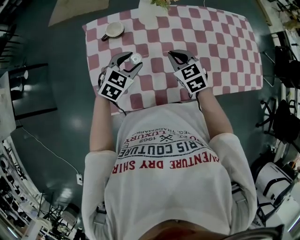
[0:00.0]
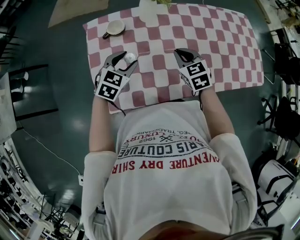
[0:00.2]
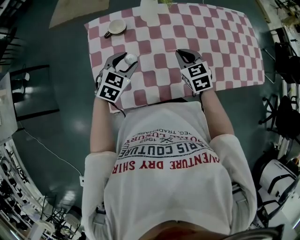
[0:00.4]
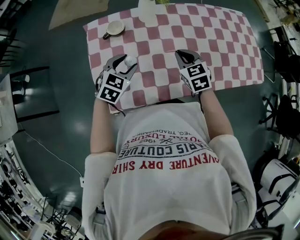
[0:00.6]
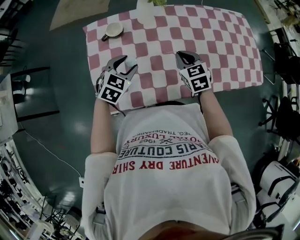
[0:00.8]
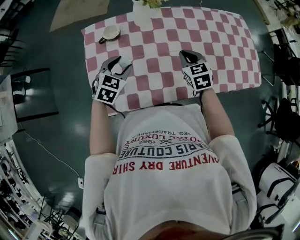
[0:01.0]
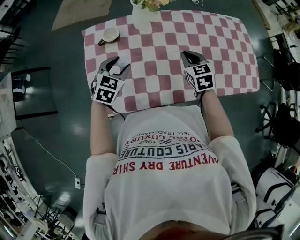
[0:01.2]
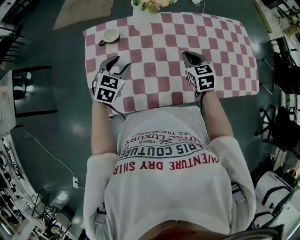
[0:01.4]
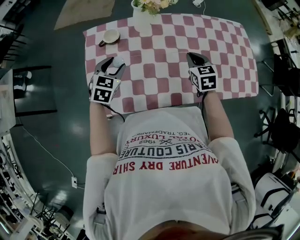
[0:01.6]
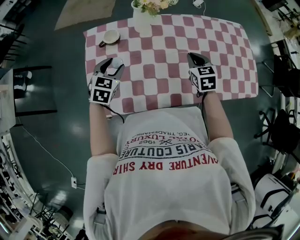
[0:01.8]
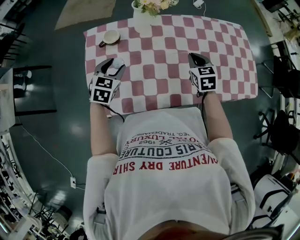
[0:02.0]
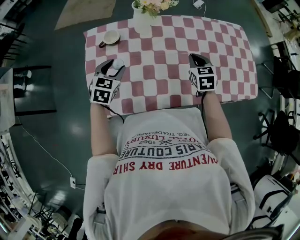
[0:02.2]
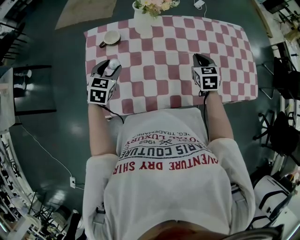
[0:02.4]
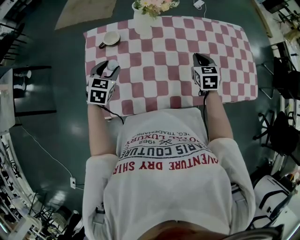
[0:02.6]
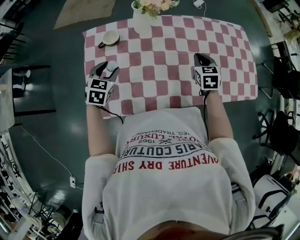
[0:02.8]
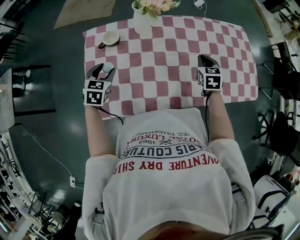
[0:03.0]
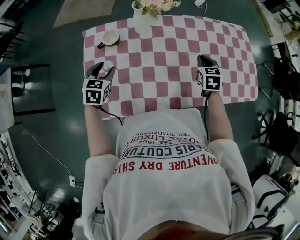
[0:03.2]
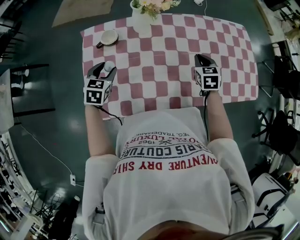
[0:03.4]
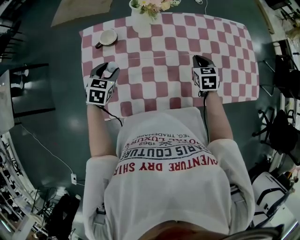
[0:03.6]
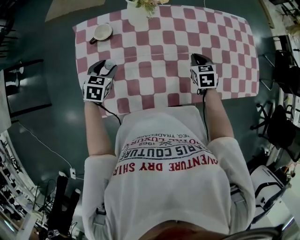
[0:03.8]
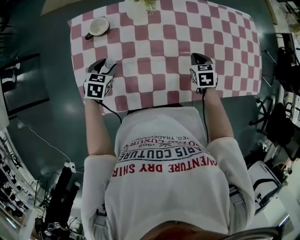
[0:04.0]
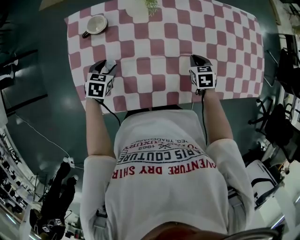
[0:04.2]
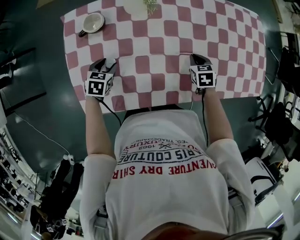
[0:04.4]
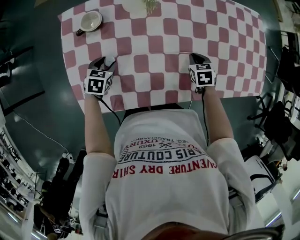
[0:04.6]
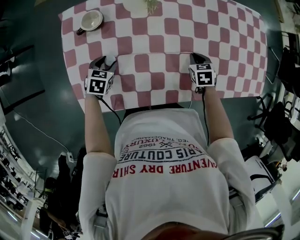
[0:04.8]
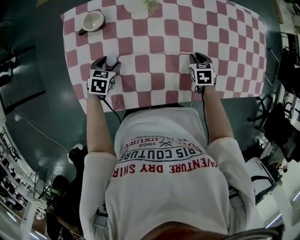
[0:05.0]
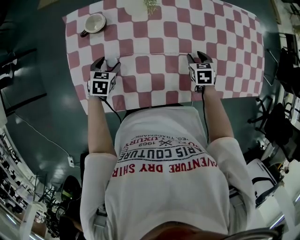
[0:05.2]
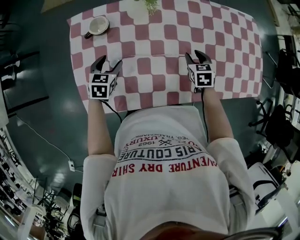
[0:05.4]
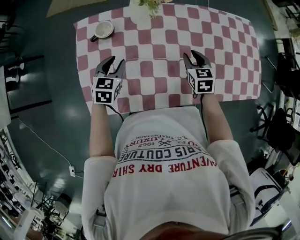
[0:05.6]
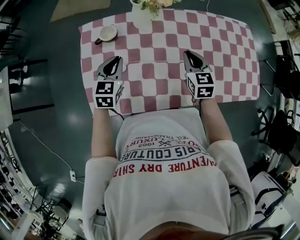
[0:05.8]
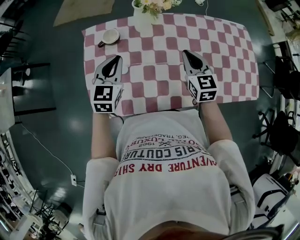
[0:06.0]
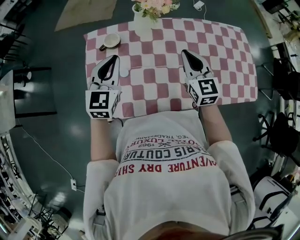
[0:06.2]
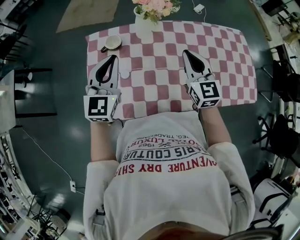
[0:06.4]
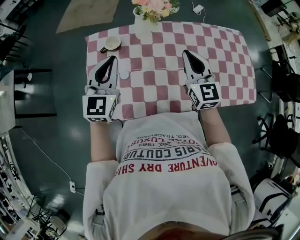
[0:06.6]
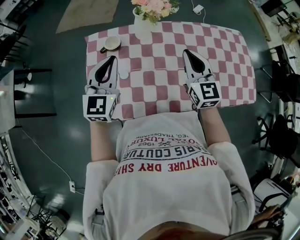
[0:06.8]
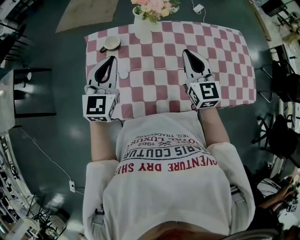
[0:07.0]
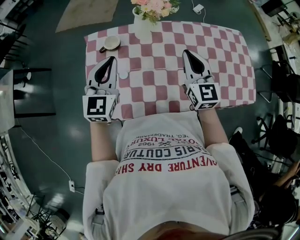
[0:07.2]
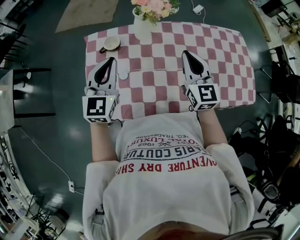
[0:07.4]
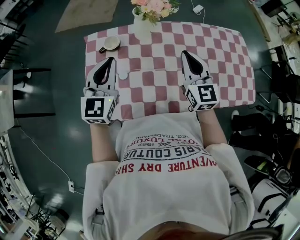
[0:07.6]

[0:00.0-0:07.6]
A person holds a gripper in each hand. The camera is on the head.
0:00.0 to 0:01.6: The right gripper travels to the right by approximately 15 cm.
0:01.6 to 0:03.0: The right gripper shifts about 5 cm to the right, while the left gripper ends up approximately 5 cm from where it was.
0:03.0 to 0:04.6: The two grippers go approximately 15 cm downward. The right gripper changes its angle by approximately 20 degrees; the left gripper changes its angle by roughly 20 degrees.
0:04.6 to 0:06.0: The right gripper heads upward and to the left, covering approximately 25 cm, tilts its fingers about 40 degrees upward, and opens, then closes once more, while the left gripper moves upward, some 25 cm, tilts its fingers approximately 40 degrees upward, and closes.
0:06.0 to 0:07.6: Both grippers move upward, about 10 cm.

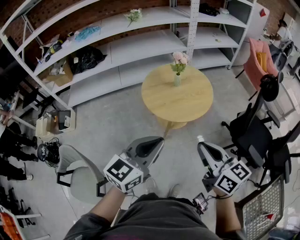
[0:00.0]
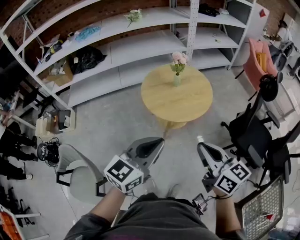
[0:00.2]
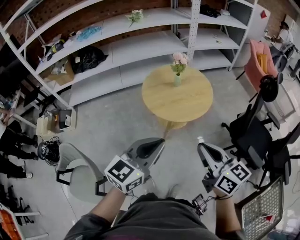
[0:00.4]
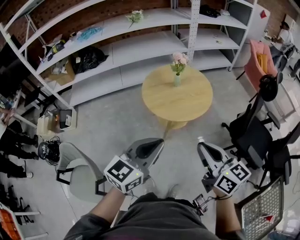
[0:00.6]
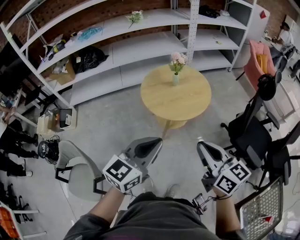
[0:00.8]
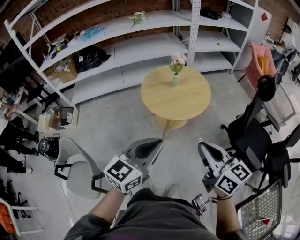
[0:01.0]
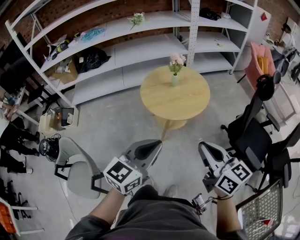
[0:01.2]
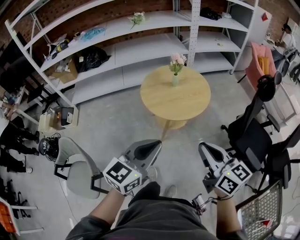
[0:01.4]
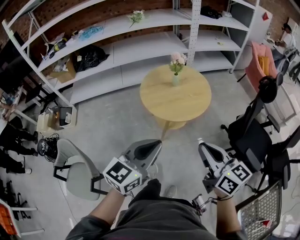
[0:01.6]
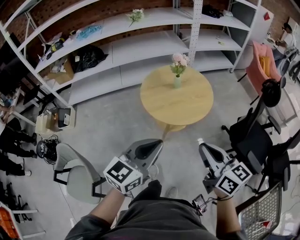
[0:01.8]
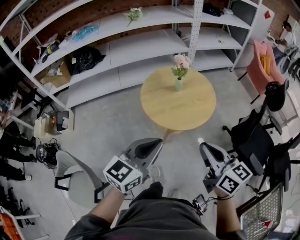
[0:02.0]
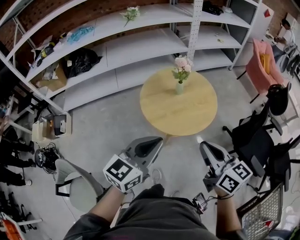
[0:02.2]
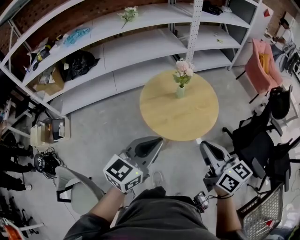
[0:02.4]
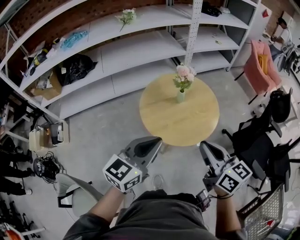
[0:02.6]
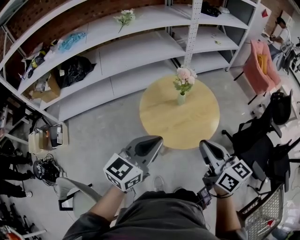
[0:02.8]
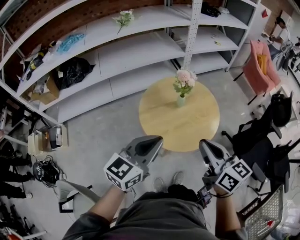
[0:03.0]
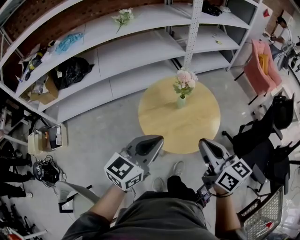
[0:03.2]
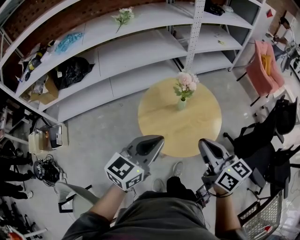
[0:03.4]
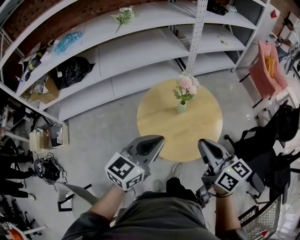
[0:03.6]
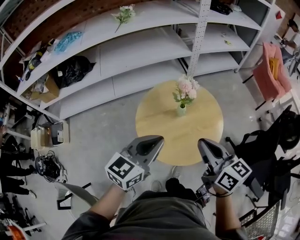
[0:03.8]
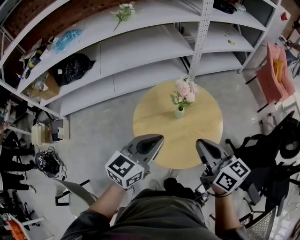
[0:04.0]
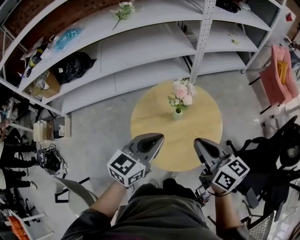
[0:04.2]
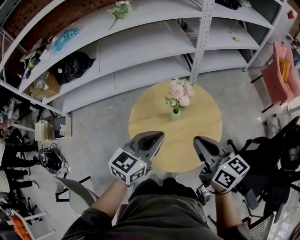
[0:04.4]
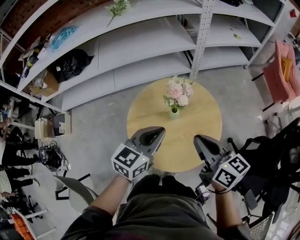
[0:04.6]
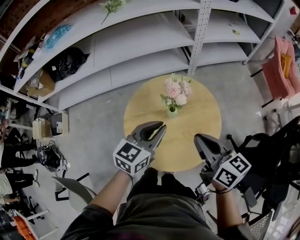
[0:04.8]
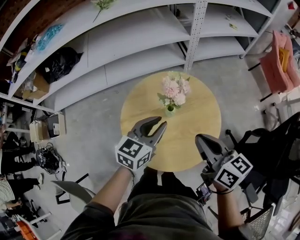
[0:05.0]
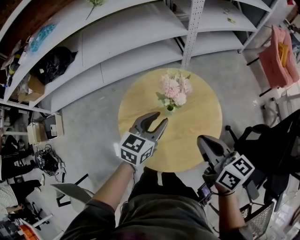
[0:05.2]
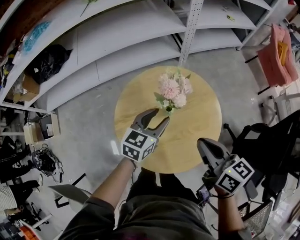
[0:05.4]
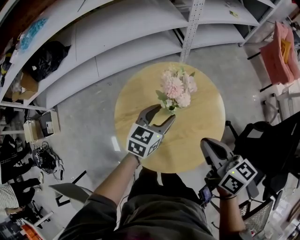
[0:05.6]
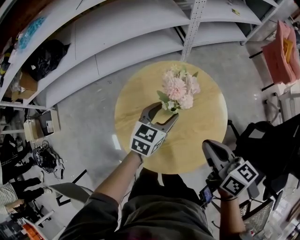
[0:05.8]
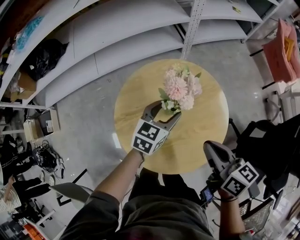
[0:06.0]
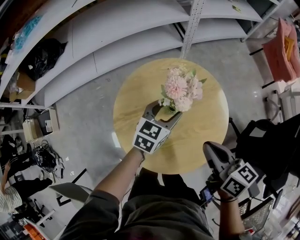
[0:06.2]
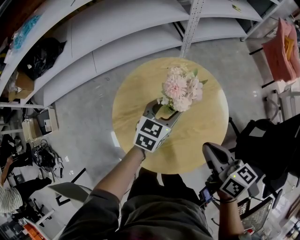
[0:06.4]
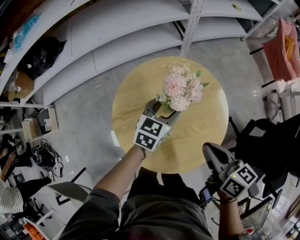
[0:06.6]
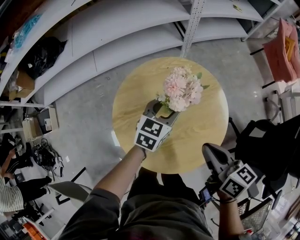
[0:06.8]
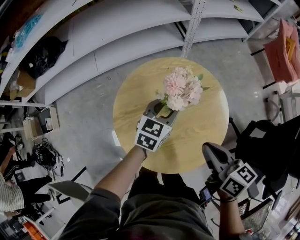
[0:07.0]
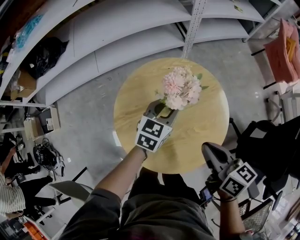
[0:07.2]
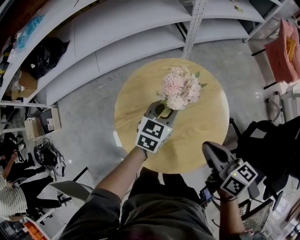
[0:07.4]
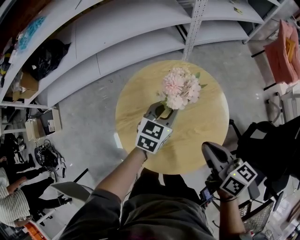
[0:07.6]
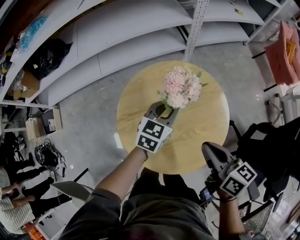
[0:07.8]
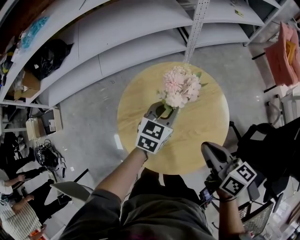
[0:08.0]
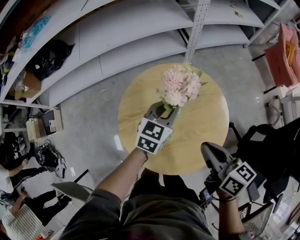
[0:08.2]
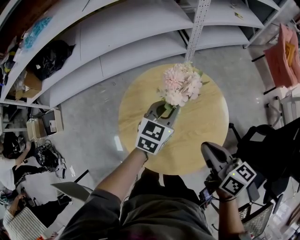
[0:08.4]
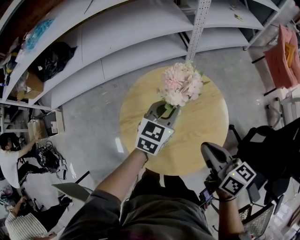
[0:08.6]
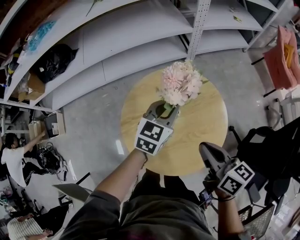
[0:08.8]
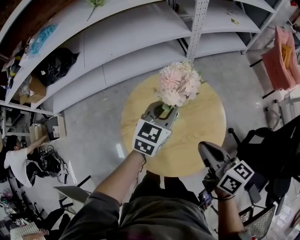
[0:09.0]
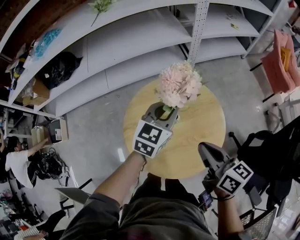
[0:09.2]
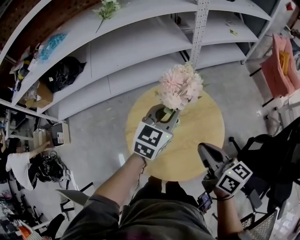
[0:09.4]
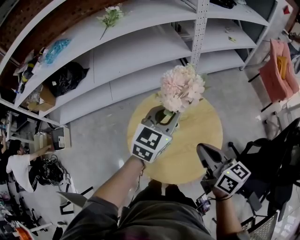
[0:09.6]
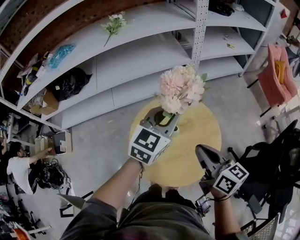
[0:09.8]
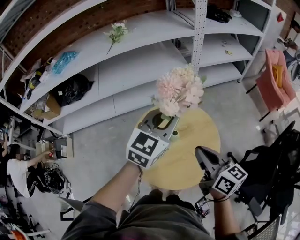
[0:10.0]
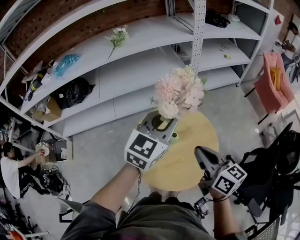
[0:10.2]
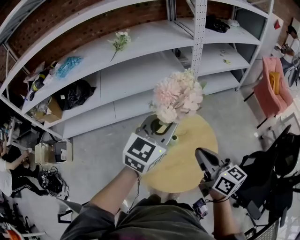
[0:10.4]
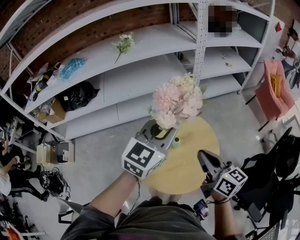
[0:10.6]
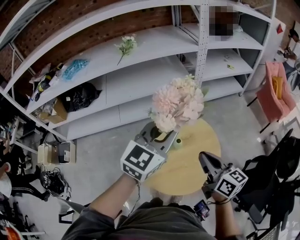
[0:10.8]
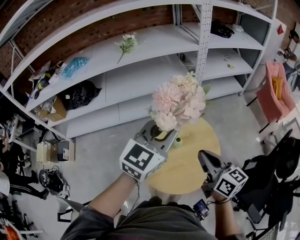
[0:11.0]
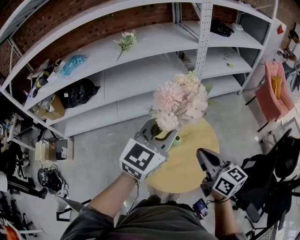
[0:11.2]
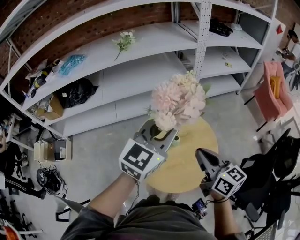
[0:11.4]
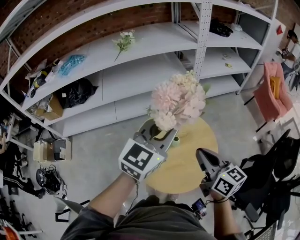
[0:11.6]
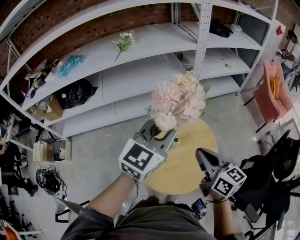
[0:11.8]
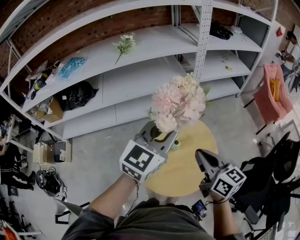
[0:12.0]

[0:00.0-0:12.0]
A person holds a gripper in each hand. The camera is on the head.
0:01.6 to 0:03.0: The grippers both shift forward and to the left by approximately 30 cm.
0:03.0 to 0:04.4: The left gripper shifts some 20 cm forward and to the right, while the right gripper is displaced forward by approximately 20 cm.
0:04.4 to 0:06.0: The left gripper travels downward and forward by about 25 cm, and opens up, while the right gripper moves downward, roughly 10 cm.
0:06.0 to 0:07.6: The left gripper closes up.
0:07.6 to 0:09.0: The left gripper shifts about 10 cm upward.
0:09.0 to 0:10.4: The right gripper travels upward by about 10 cm. The left gripper is displaced upward by roughly 20 cm.
0:10.4 to 0:12.0: The grippers stay close to where they were, moving slightly.

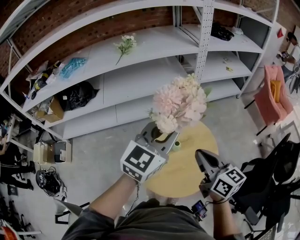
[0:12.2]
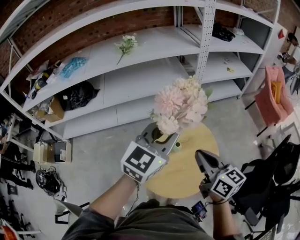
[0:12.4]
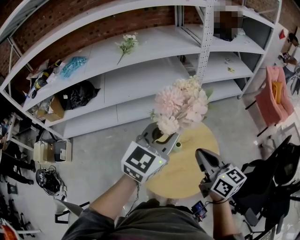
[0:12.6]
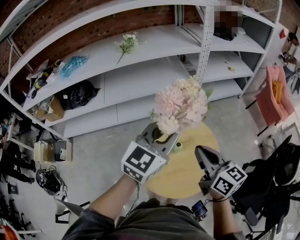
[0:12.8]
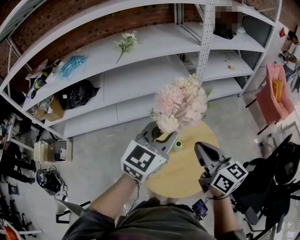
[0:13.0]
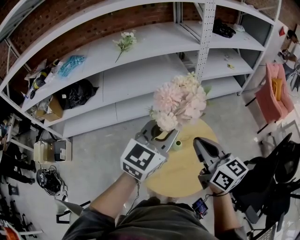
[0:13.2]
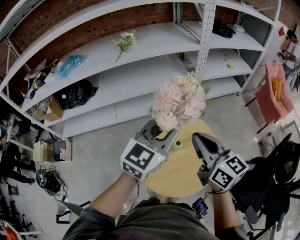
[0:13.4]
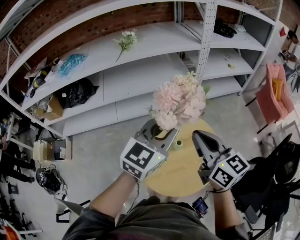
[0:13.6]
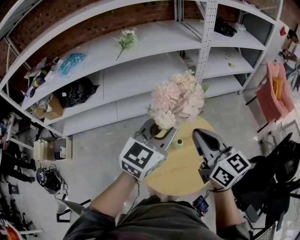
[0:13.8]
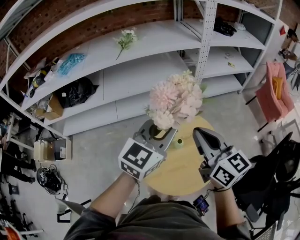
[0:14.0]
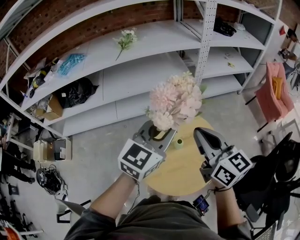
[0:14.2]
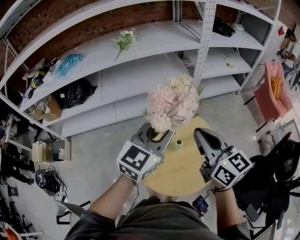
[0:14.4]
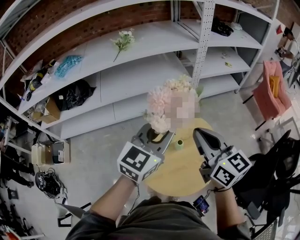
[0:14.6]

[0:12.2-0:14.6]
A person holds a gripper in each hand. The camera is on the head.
0:12.2 to 0:13.4: The right gripper moves upward and forward, about 10 cm.
0:13.4 to 0:14.6: The grippers make only small movements.

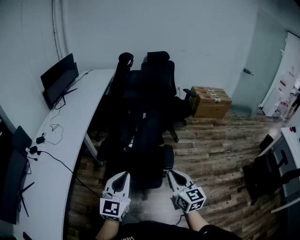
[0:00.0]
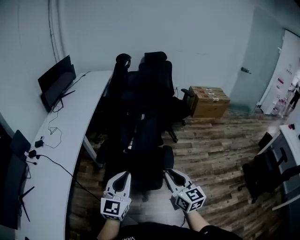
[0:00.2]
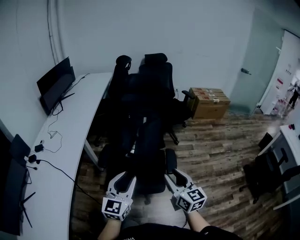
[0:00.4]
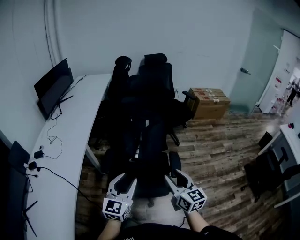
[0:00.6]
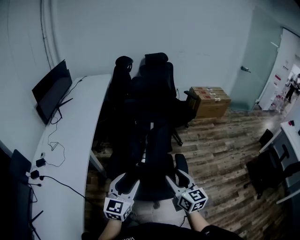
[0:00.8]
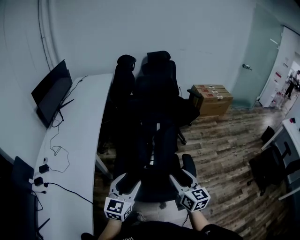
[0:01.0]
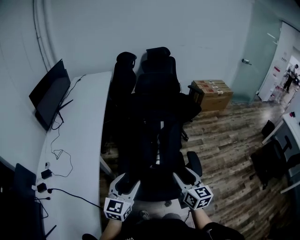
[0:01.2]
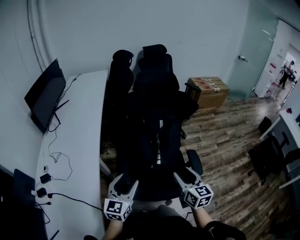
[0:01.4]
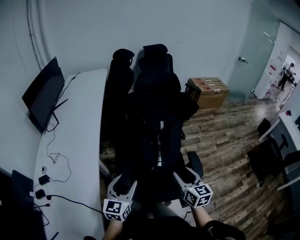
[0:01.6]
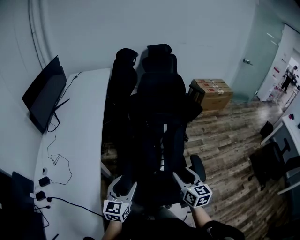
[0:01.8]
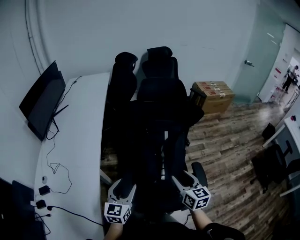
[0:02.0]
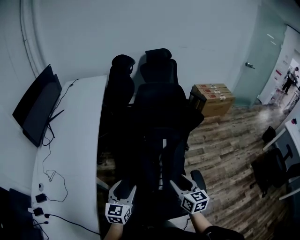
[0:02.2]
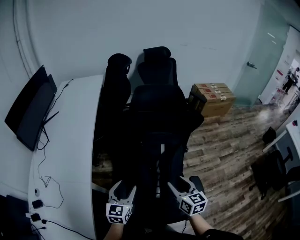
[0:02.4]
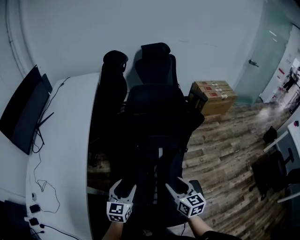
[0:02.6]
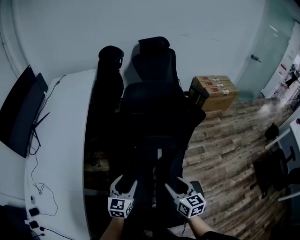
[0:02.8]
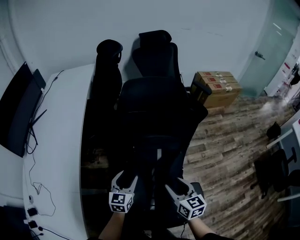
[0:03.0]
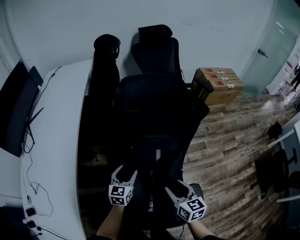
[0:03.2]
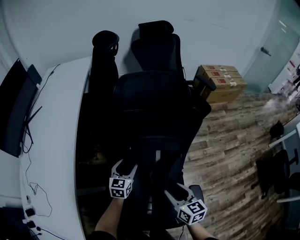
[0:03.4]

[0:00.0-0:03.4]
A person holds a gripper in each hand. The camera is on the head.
0:00.0 to 0:01.6: Both grippers travel together to the left and forward, some 35 cm. The left gripper opens up; the right gripper opens its fingers.
0:01.6 to 0:03.4: The grippers both shift forward and downward by roughly 50 cm.
